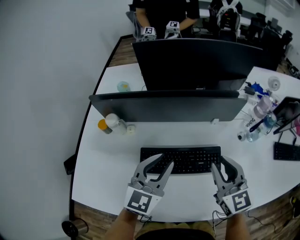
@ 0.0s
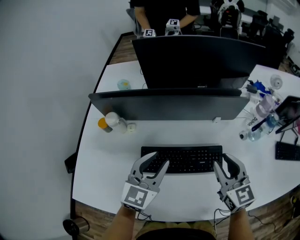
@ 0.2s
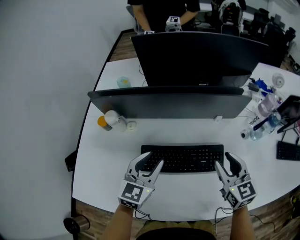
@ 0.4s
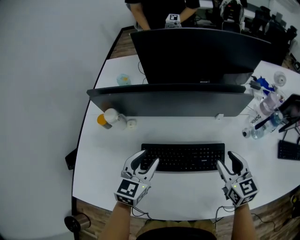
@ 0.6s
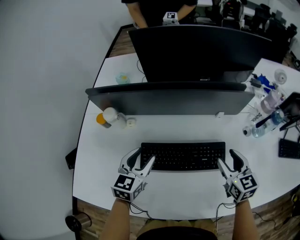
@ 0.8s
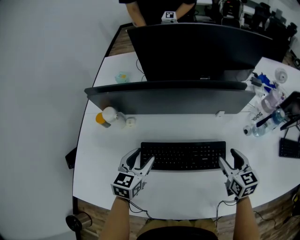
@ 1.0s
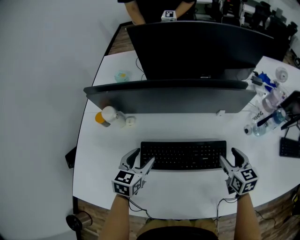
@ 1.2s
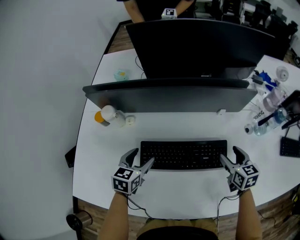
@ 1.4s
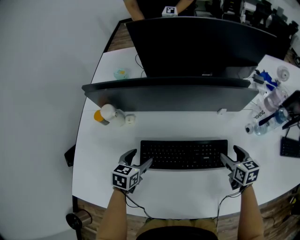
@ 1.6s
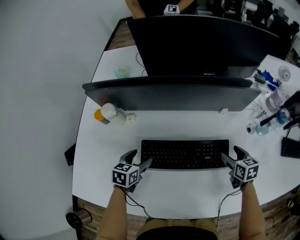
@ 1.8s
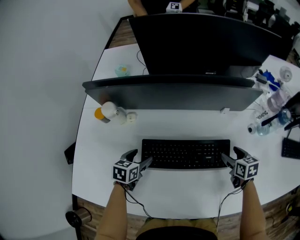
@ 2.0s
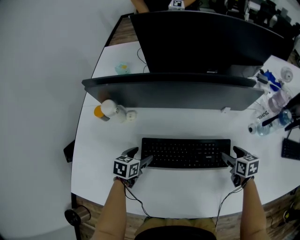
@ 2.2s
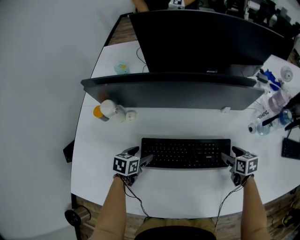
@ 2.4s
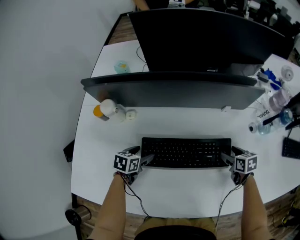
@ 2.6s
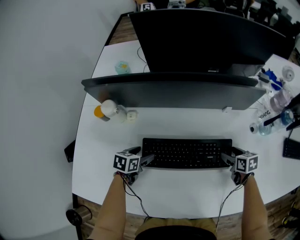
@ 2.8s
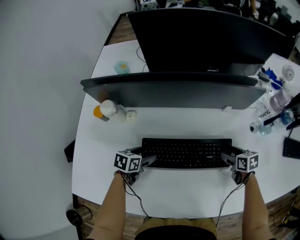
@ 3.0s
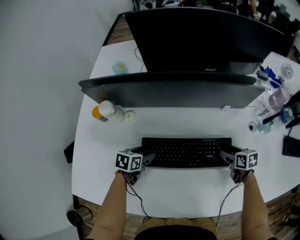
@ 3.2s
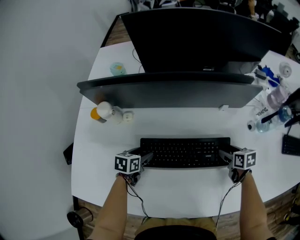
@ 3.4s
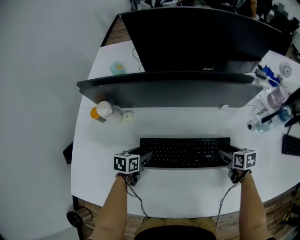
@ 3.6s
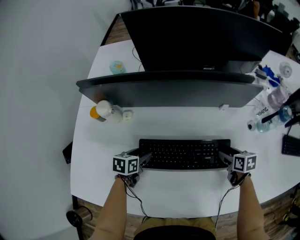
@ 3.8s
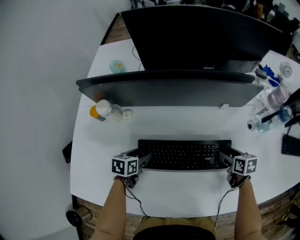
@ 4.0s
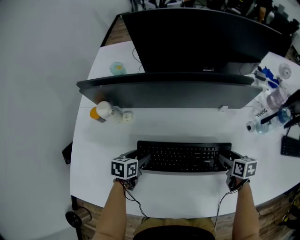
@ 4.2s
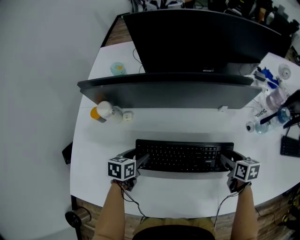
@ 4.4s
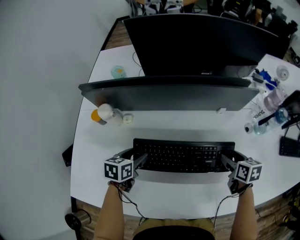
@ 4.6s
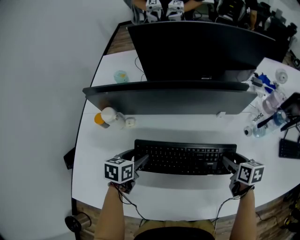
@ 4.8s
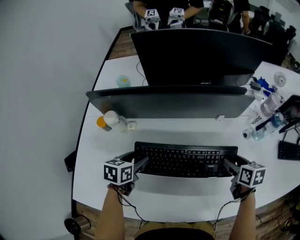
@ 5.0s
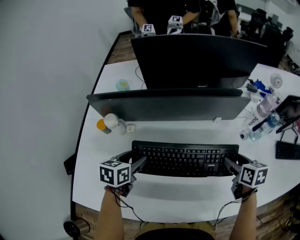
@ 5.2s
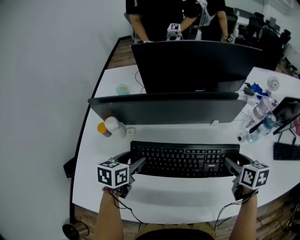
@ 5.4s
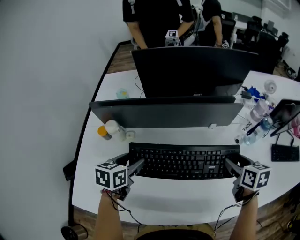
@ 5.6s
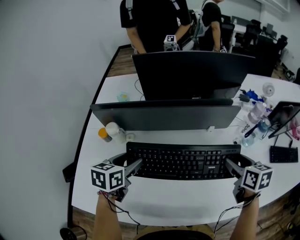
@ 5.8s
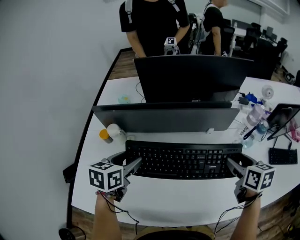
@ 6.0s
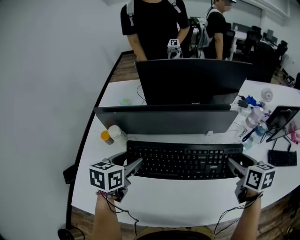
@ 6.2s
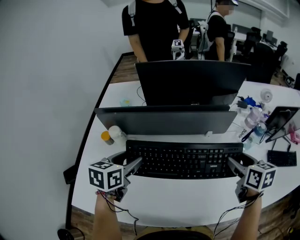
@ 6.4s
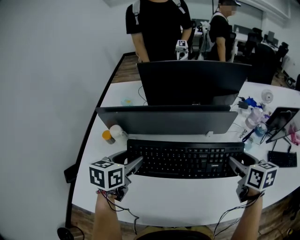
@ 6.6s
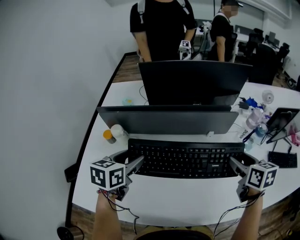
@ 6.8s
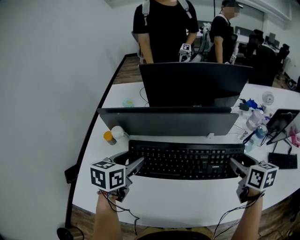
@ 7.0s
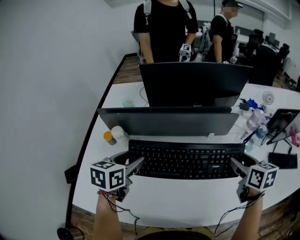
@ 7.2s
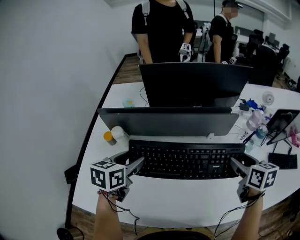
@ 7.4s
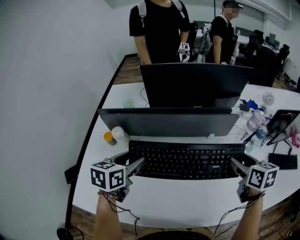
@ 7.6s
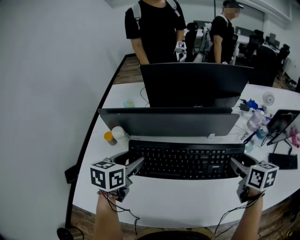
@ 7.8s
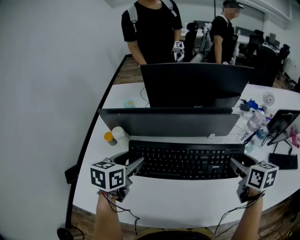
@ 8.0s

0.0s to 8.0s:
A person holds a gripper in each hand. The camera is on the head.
0.0s to 1.6s: The left gripper heads downward and to the left, covering about 25 cm, tilts its fingers approximately 30 degrees downward, and opens, while the right gripper is displaced downward and to the right by roughly 25 cm, changes its angle by about 30 degrees, and opens up.
1.6s to 3.2s: The two grippers go some 10 cm downward.
3.2s to 4.8s: The two grippers go about 10 cm upward.
4.8s to 6.4s: Both grippers move upward, about 20 cm.
6.4s to 8.0s: Both grippers stay about where they are.

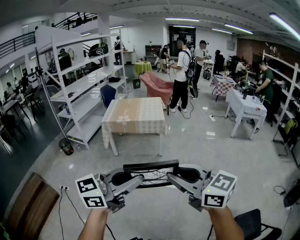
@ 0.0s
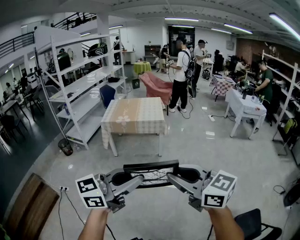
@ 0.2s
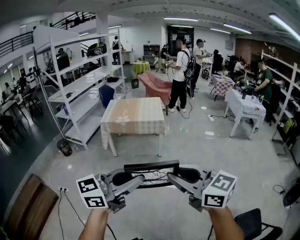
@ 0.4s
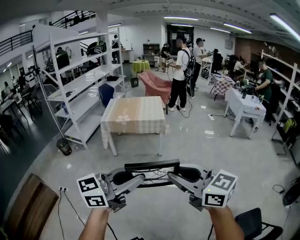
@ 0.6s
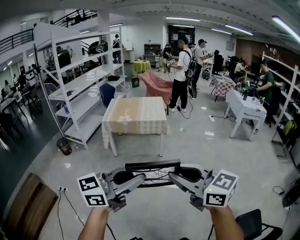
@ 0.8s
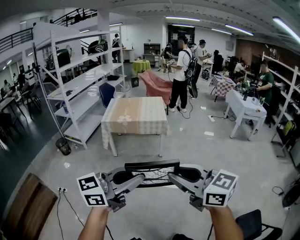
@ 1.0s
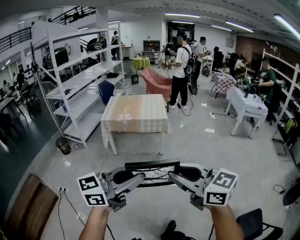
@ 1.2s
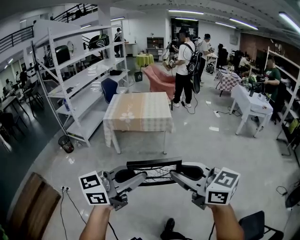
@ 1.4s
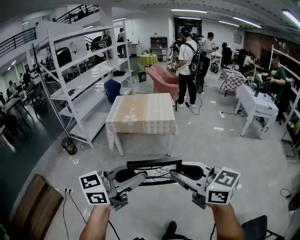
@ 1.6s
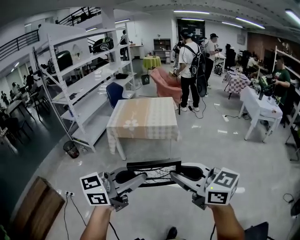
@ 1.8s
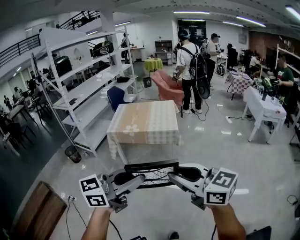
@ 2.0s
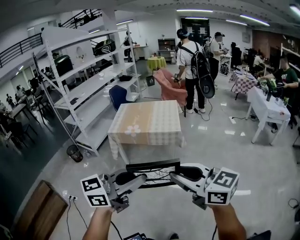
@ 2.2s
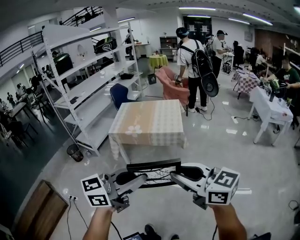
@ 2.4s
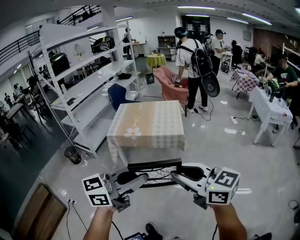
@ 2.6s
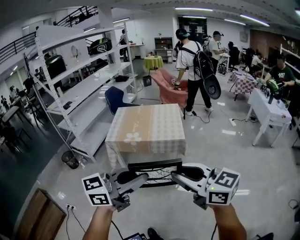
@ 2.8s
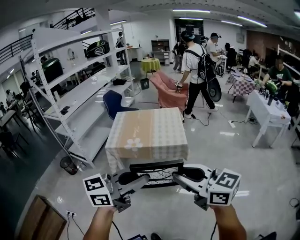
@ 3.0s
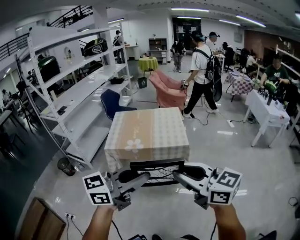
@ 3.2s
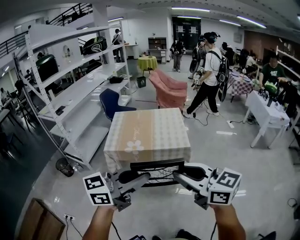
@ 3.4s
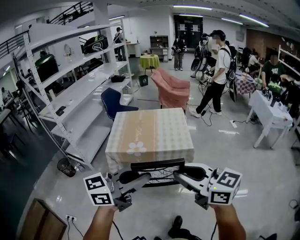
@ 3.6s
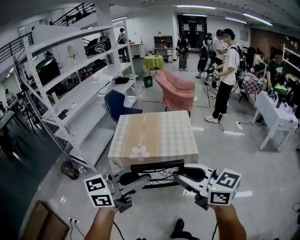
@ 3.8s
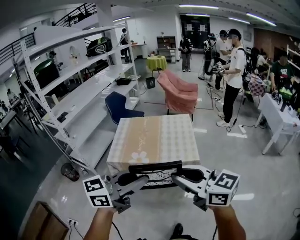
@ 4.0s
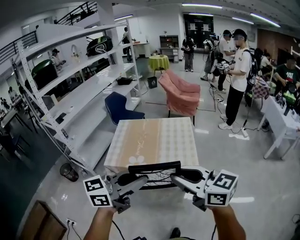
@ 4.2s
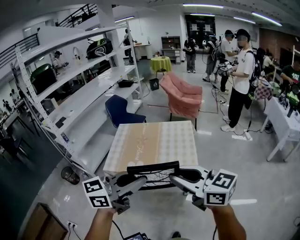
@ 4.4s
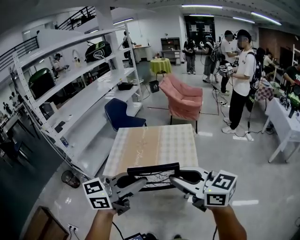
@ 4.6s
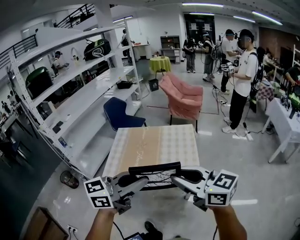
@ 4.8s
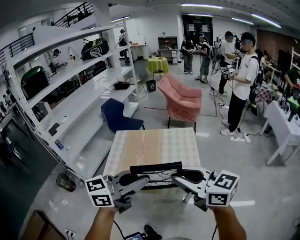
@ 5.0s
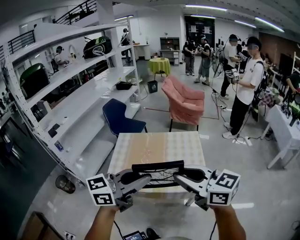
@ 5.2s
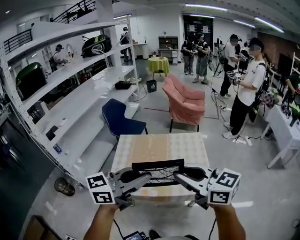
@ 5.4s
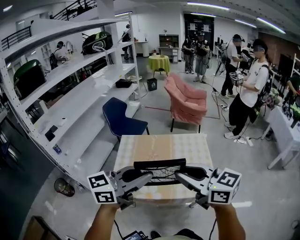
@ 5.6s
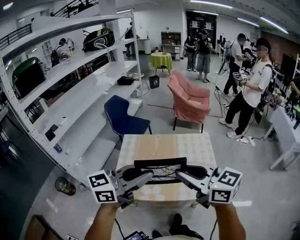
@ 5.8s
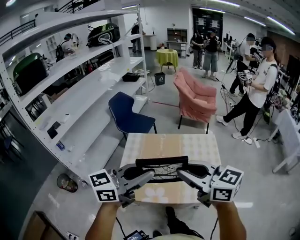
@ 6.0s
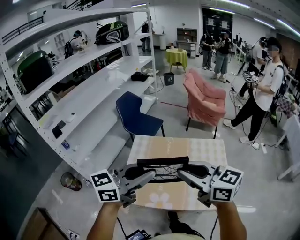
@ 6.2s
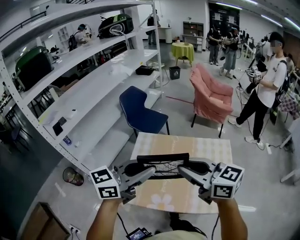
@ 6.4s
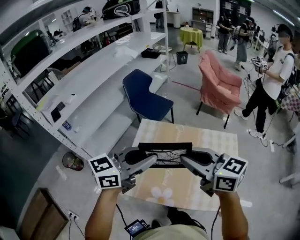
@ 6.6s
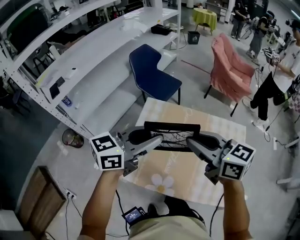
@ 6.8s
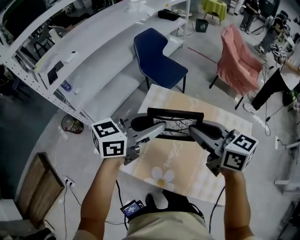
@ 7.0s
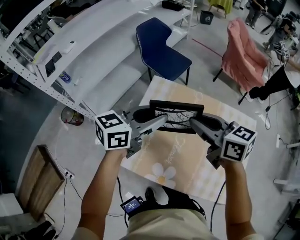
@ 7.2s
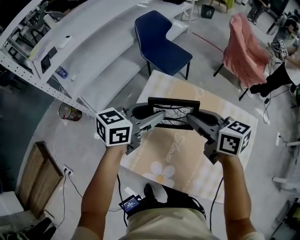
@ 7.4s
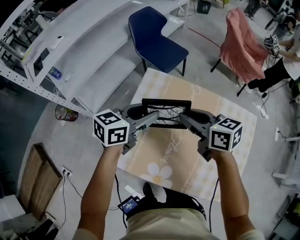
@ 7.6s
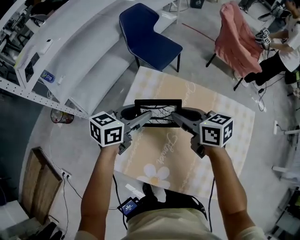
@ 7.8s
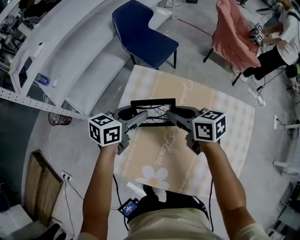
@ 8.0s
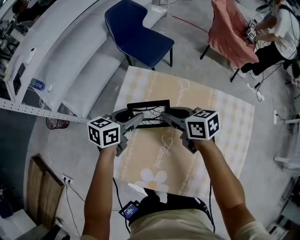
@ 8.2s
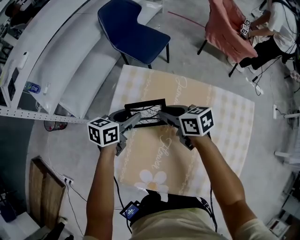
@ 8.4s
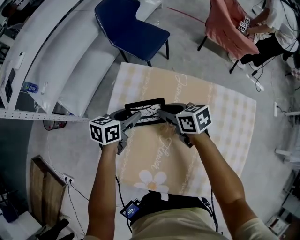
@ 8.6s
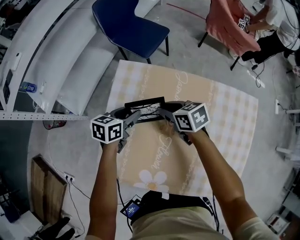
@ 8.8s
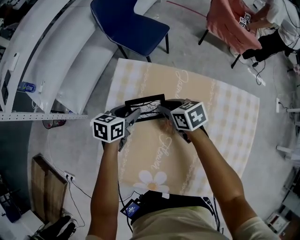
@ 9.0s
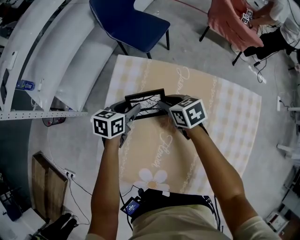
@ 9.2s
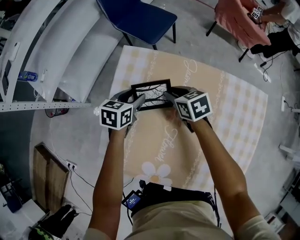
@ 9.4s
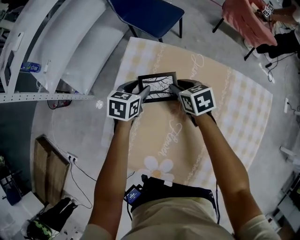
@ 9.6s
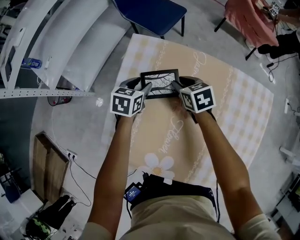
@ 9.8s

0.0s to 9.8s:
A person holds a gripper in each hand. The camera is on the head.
0.0s to 1.4s: Both grippers travel together forward and to the left, roughly 15 cm.
1.4s to 2.8s: The two grippers go approximately 35 cm forward.
2.8s to 4.2s: Both grippers move forward, approximately 30 cm.
4.2s to 5.6s: The grippers both shift forward and to the left by roughly 30 cm.
5.6s to 7.0s: The two grippers go some 35 cm forward and downward. The left gripper turns by some 30 degrees. The right gripper changes its angle by about 20 degrees.
7.0s to 8.4s: The two grippers go approximately 30 cm downward and forward. The right gripper rotates approximately 20 degrees. Meanwhile the left gripper changes its angle by some 30 degrees.
8.4s to 9.8s: The two grippers go some 10 cm downward. The left gripper swivels some 20 degrees. The right gripper turns by some 20 degrees.

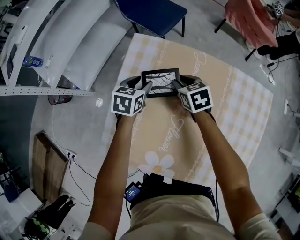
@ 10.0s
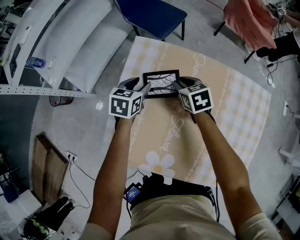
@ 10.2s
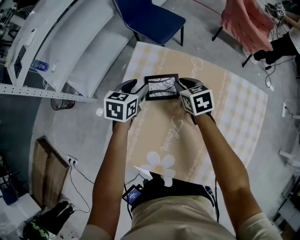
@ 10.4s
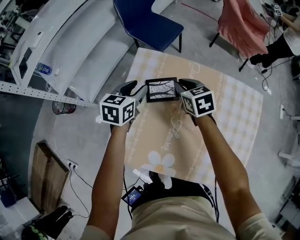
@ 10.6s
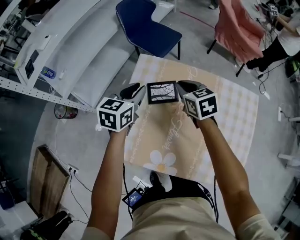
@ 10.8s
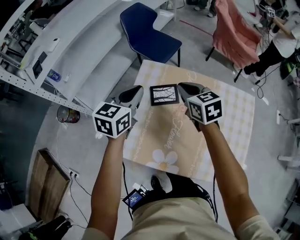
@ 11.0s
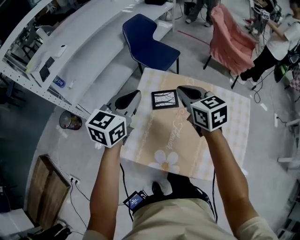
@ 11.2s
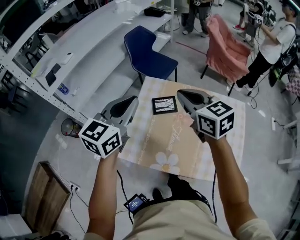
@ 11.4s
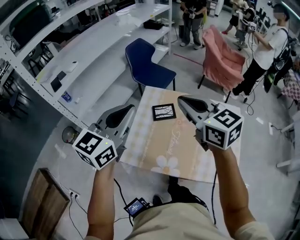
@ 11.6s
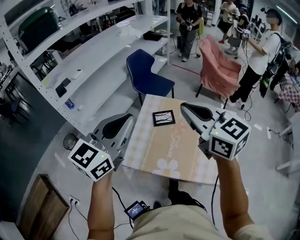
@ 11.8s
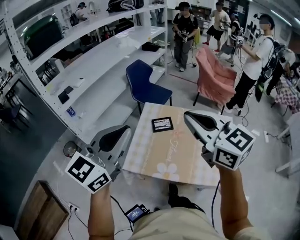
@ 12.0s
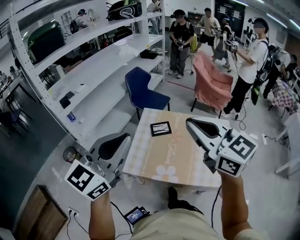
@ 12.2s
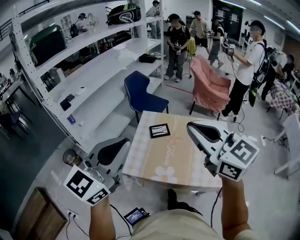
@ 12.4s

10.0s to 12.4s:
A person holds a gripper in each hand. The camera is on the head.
10.0s to 11.2s: Both grippers travel together upward, some 35 cm. The right gripper rotates roughly 20 degrees, and closes, while the left gripper angles its fingers upward, by about 30 degrees, and closes its fingers.
11.2s to 12.4s: Both grippers travel together backward and upward, roughly 40 cm. The left gripper turns by some 30 degrees. The right gripper rotates roughly 30 degrees.

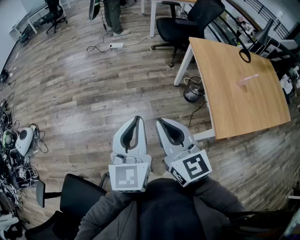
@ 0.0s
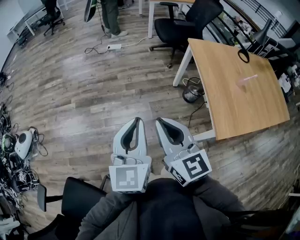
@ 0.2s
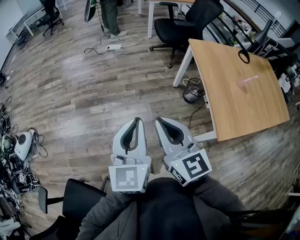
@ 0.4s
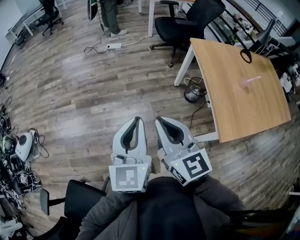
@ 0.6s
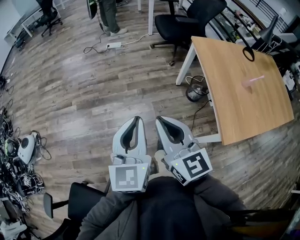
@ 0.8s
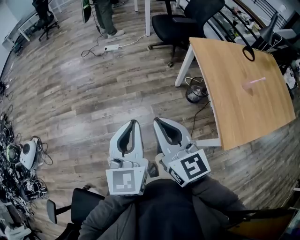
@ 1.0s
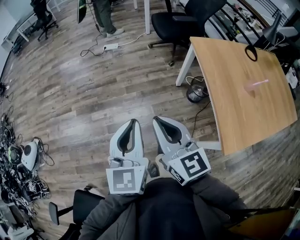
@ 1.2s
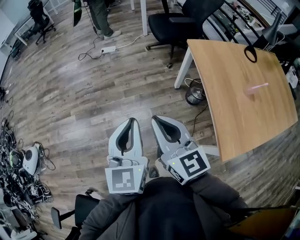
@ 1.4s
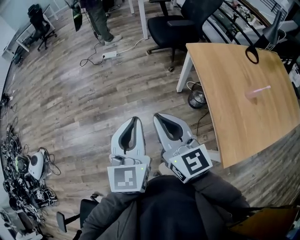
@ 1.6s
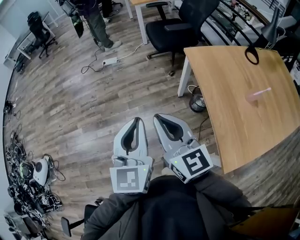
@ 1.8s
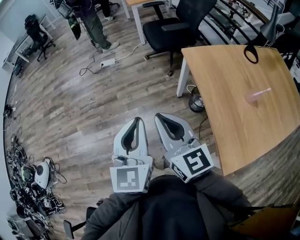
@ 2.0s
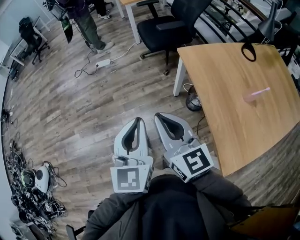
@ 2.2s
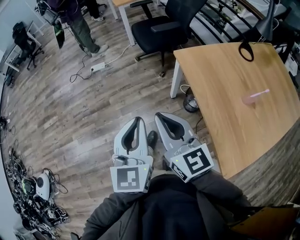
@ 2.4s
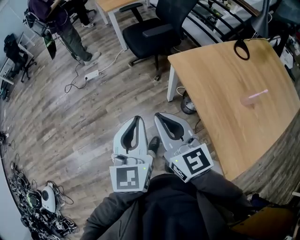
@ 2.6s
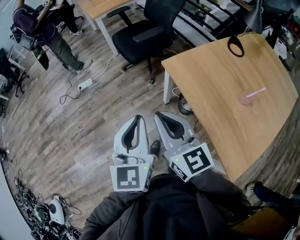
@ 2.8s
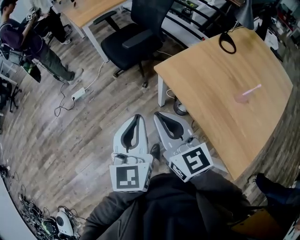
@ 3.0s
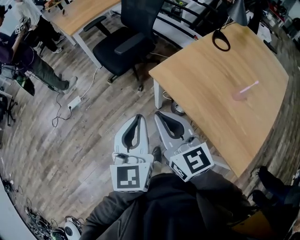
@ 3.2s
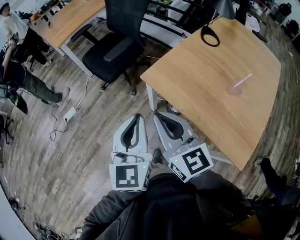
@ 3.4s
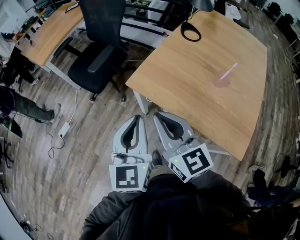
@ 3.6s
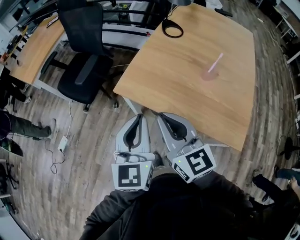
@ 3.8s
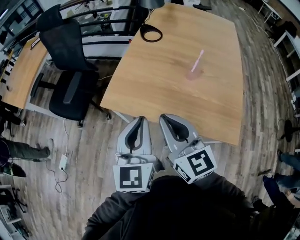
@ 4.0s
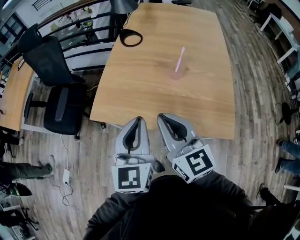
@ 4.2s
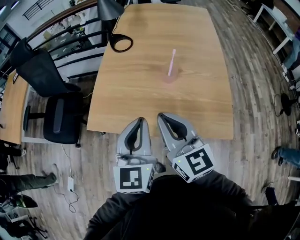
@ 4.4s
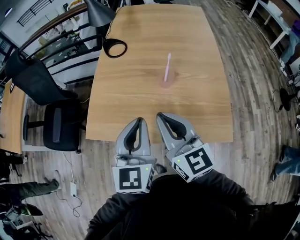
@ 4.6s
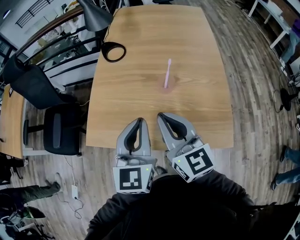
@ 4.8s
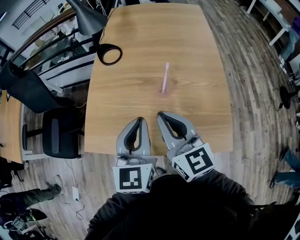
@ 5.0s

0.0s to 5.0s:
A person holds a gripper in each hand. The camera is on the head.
0.0s to 1.6s: Both grippers move forward, some 20 cm.
1.6s to 3.4s: The right gripper changes place by some 30 cm, and rotates approximately 40 degrees. Meanwhile the left gripper shifts by roughly 35 cm, and changes its angle by roughly 40 degrees.
3.4s to 5.0s: The left gripper changes place by approximately 35 cm, and changes its angle by about 40 degrees. Meanwhile the right gripper shifts by some 35 cm, and turns by approximately 40 degrees.
